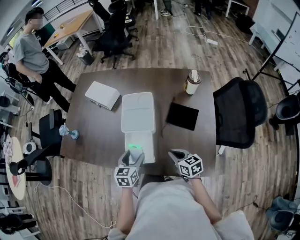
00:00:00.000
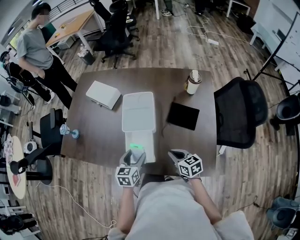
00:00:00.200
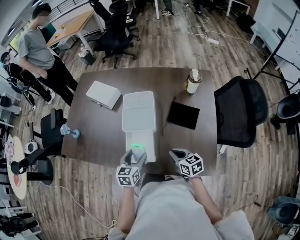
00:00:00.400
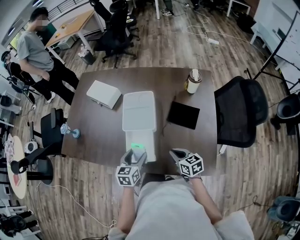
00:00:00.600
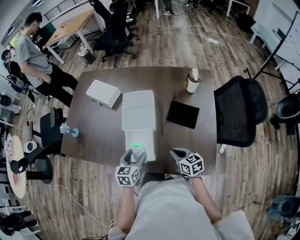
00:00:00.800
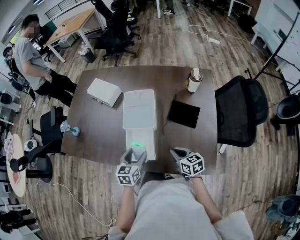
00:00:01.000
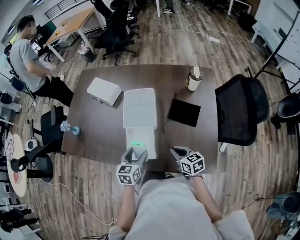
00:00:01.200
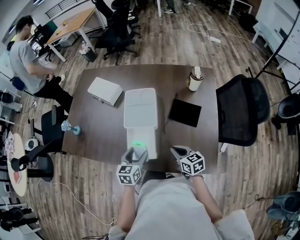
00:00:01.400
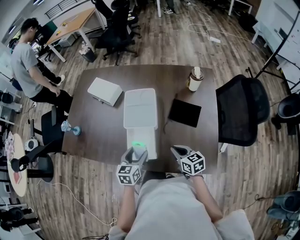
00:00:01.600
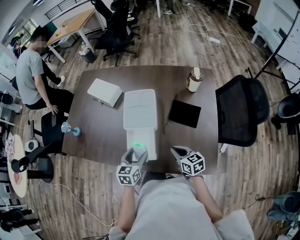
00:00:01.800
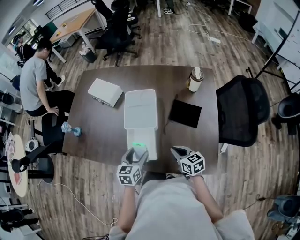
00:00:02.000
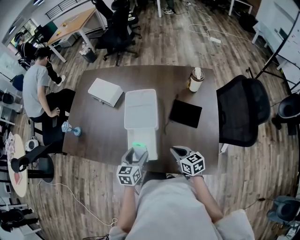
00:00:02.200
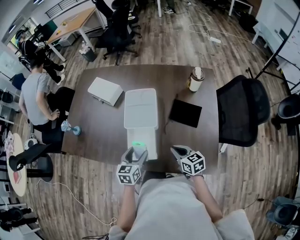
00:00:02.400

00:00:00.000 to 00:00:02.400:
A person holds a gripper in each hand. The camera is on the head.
00:00:00.000 to 00:00:02.400: Both grippers stay put.

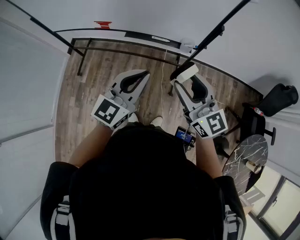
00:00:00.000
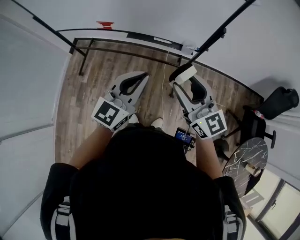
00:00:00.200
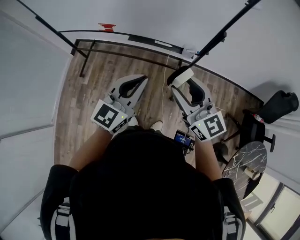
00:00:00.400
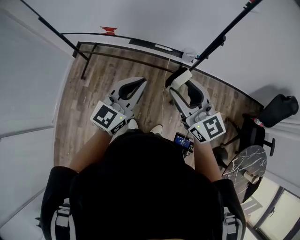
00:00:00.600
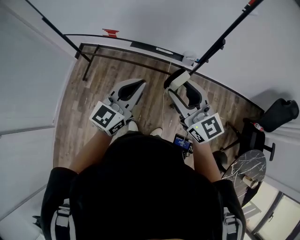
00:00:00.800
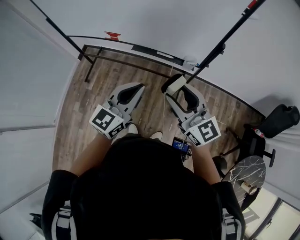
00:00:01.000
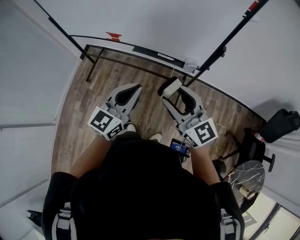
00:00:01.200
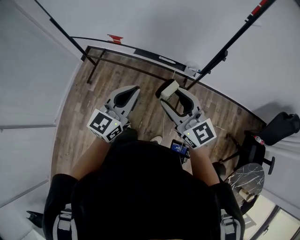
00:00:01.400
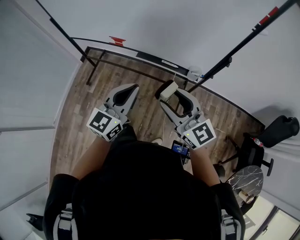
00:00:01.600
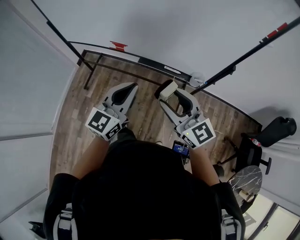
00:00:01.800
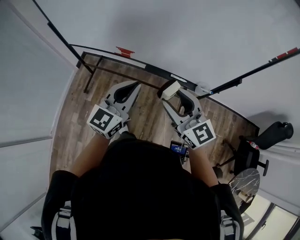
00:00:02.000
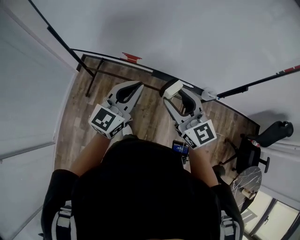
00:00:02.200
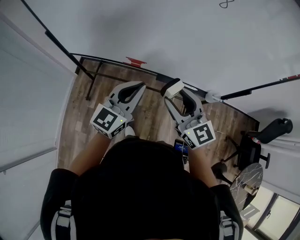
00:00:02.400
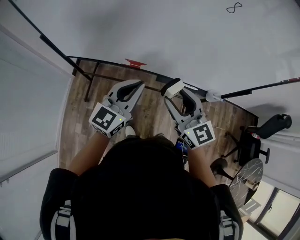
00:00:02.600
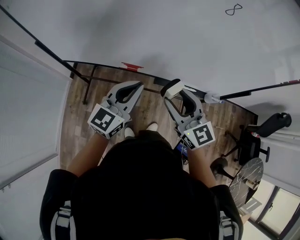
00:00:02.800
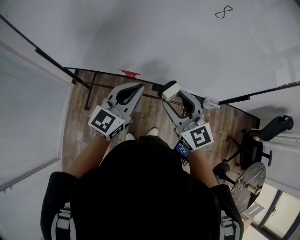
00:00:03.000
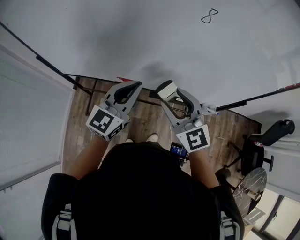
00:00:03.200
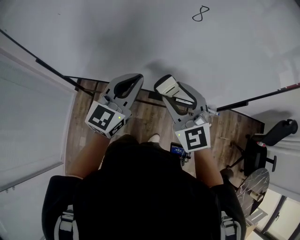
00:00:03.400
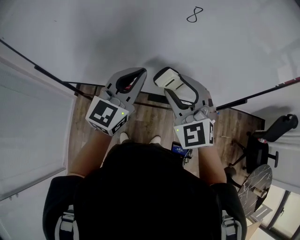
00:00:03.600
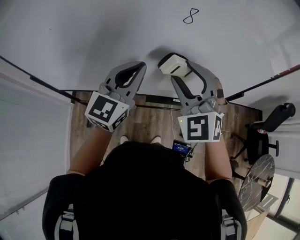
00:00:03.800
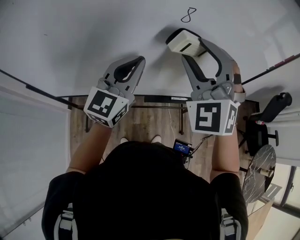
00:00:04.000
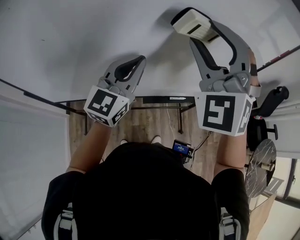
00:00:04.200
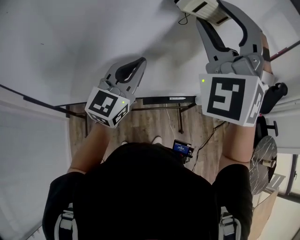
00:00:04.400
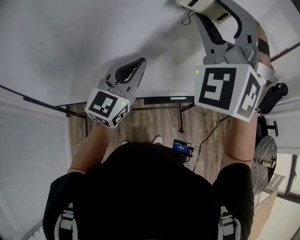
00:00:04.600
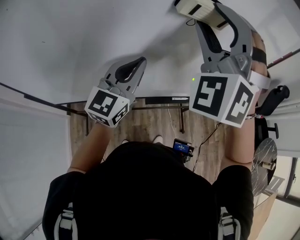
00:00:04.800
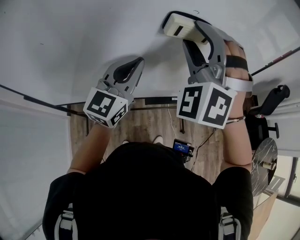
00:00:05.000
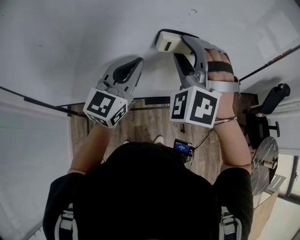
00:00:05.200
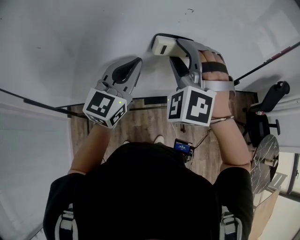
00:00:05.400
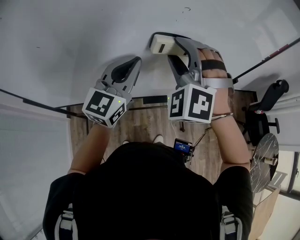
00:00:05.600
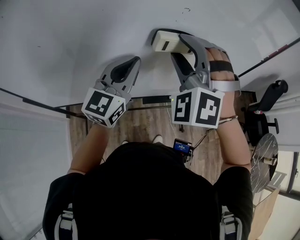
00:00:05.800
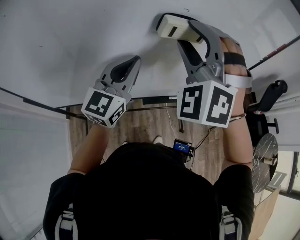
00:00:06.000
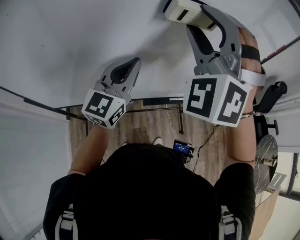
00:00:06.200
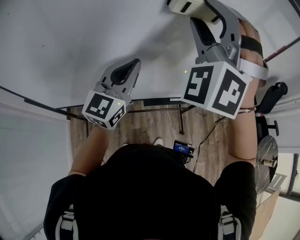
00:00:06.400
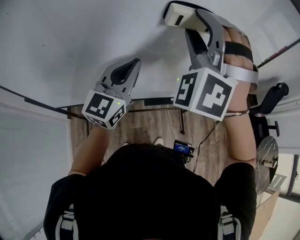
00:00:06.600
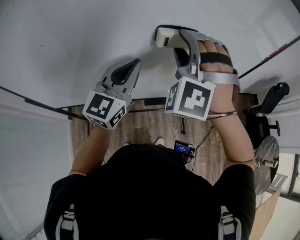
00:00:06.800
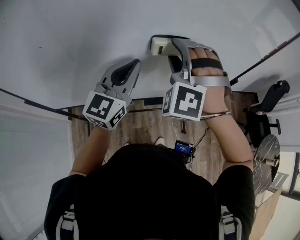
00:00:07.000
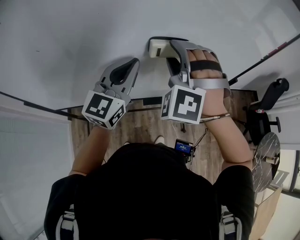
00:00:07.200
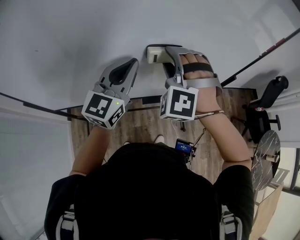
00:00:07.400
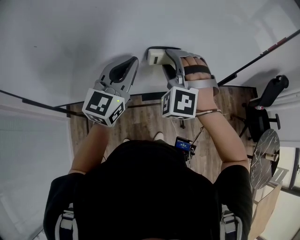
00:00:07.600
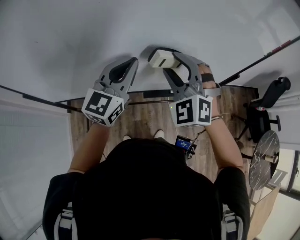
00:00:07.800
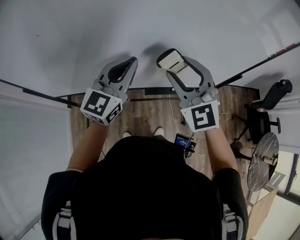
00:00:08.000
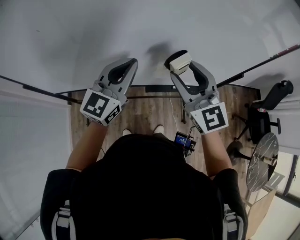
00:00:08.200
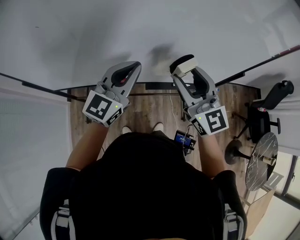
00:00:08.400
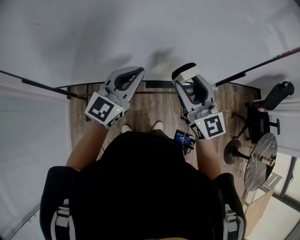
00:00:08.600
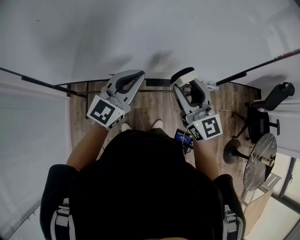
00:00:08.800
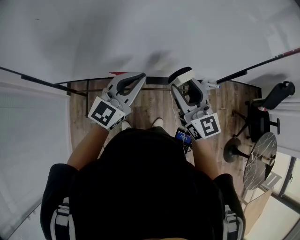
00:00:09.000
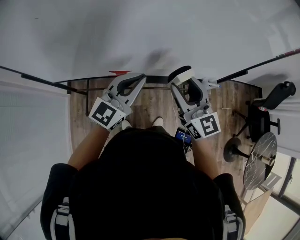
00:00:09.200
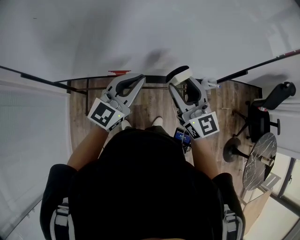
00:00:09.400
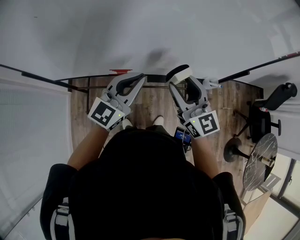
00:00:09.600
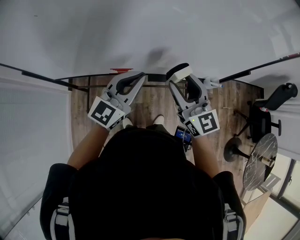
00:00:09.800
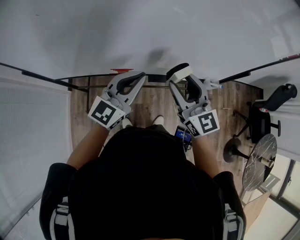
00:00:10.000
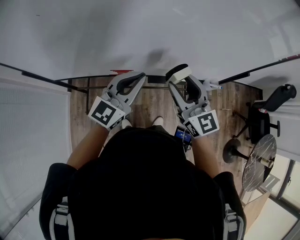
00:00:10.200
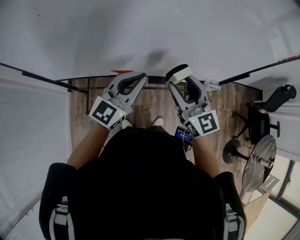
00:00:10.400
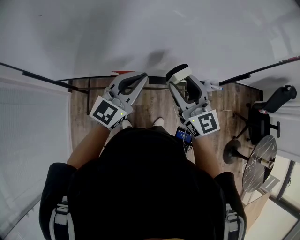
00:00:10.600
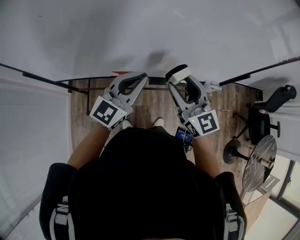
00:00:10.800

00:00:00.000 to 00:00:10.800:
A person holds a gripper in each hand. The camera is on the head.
00:00:00.000 to 00:00:01.600: The right gripper shifts some 5 cm to the left, while the left gripper ends up about 5 cm from where it was.
00:00:01.600 to 00:00:03.000: Both grippers travel together forward and to the left, about 30 cm.
00:00:03.000 to 00:00:04.600: The right gripper heads upward, covering roughly 30 cm, and turns by about 80 degrees. The left gripper shifts by roughly 15 cm.
00:00:04.600 to 00:00:06.200: The right gripper goes downward and returns, some 15 cm each way.
00:00:06.200 to 00:00:07.800: The right gripper moves downward, about 20 cm, and rotates some 30 degrees.
00:00:07.800 to 00:00:09.200: The right gripper shifts about 10 cm backward and downward, and rolls clockwise, seen from behind, by approximately 60 degrees; the left gripper shifts some 10 cm downward and backward.
00:00:09.200 to 00:00:10.800: The grippers move only a little.

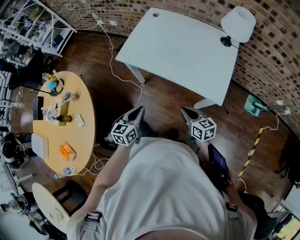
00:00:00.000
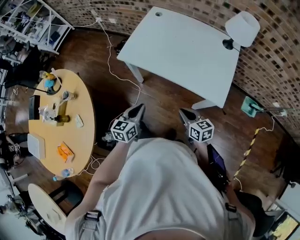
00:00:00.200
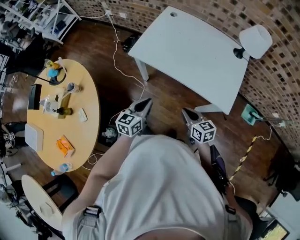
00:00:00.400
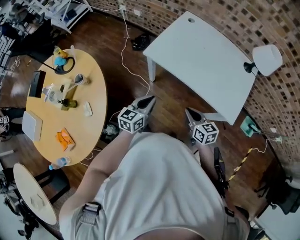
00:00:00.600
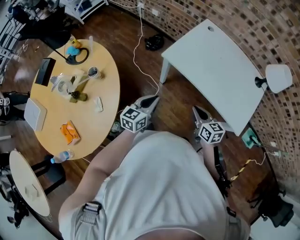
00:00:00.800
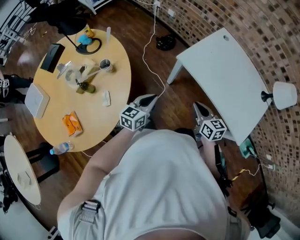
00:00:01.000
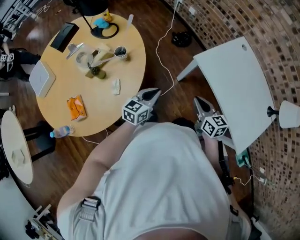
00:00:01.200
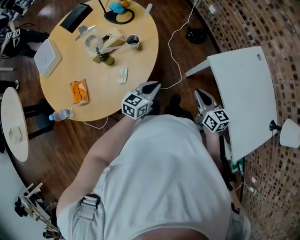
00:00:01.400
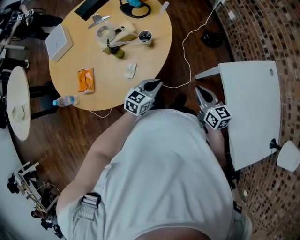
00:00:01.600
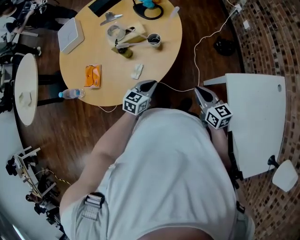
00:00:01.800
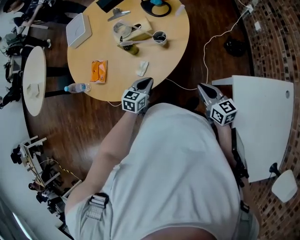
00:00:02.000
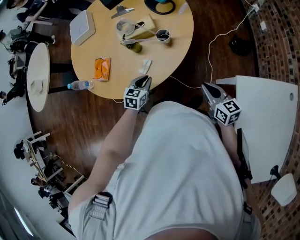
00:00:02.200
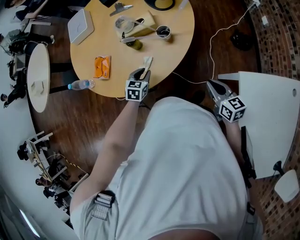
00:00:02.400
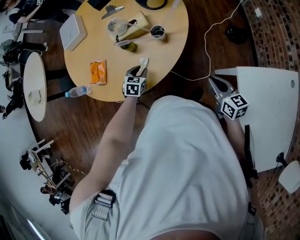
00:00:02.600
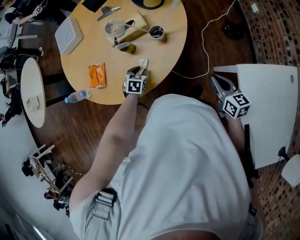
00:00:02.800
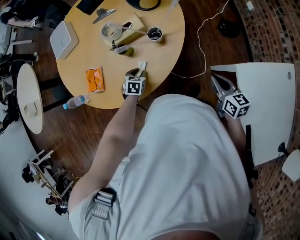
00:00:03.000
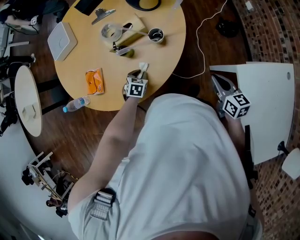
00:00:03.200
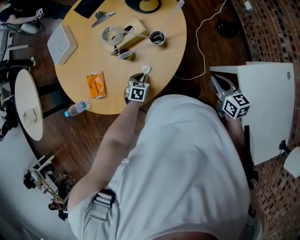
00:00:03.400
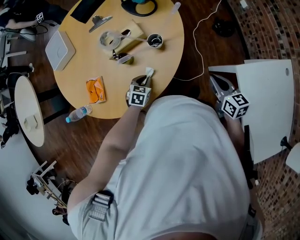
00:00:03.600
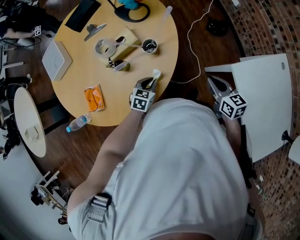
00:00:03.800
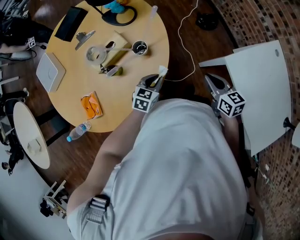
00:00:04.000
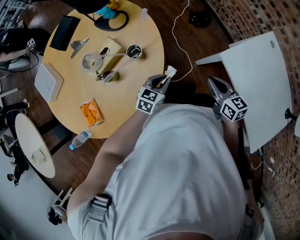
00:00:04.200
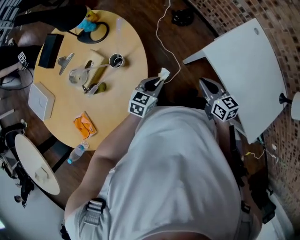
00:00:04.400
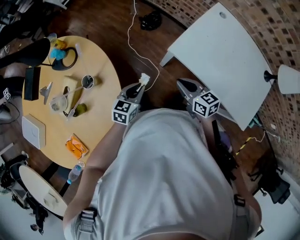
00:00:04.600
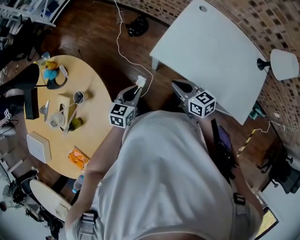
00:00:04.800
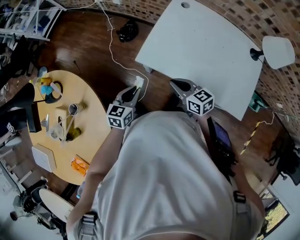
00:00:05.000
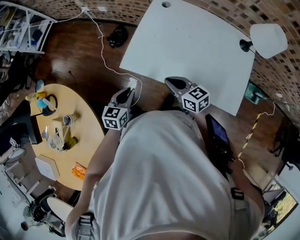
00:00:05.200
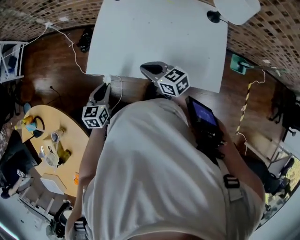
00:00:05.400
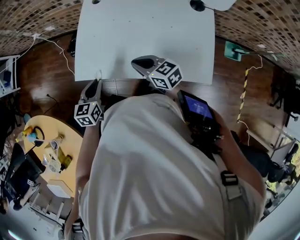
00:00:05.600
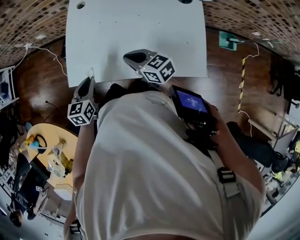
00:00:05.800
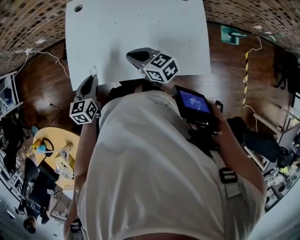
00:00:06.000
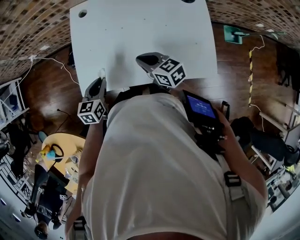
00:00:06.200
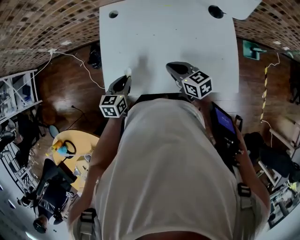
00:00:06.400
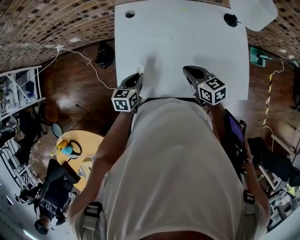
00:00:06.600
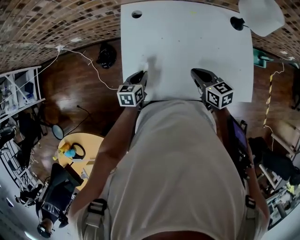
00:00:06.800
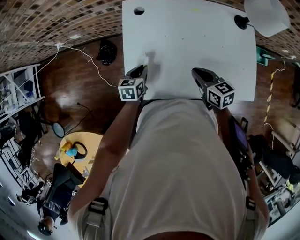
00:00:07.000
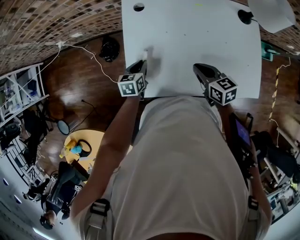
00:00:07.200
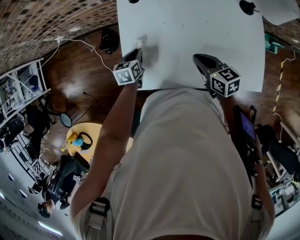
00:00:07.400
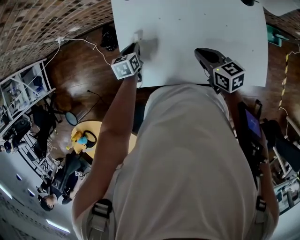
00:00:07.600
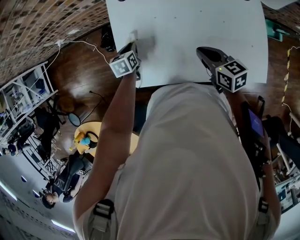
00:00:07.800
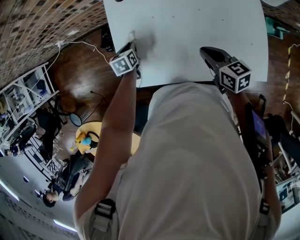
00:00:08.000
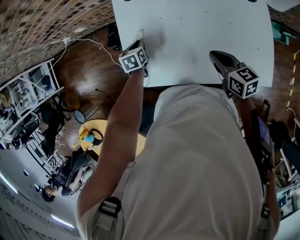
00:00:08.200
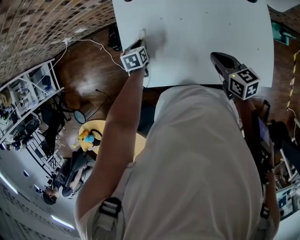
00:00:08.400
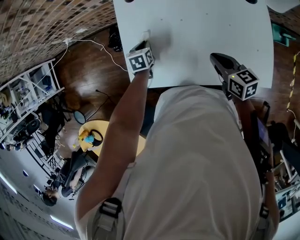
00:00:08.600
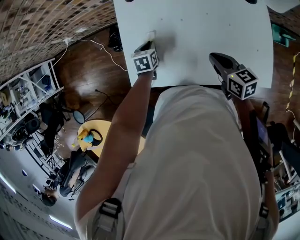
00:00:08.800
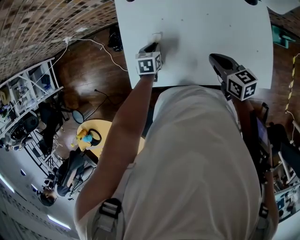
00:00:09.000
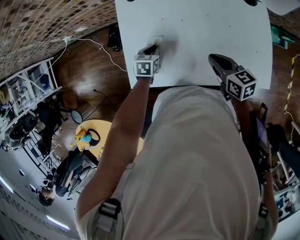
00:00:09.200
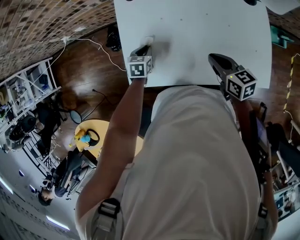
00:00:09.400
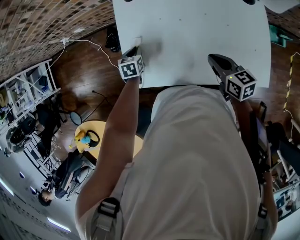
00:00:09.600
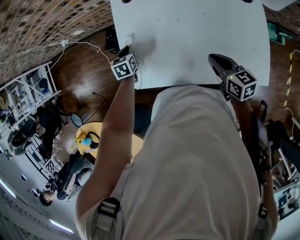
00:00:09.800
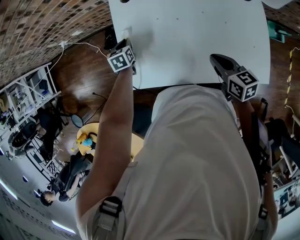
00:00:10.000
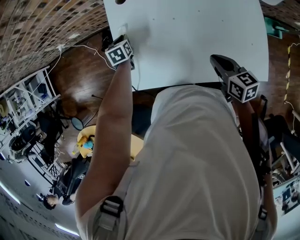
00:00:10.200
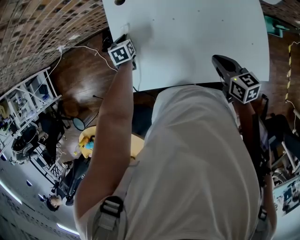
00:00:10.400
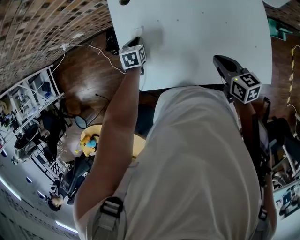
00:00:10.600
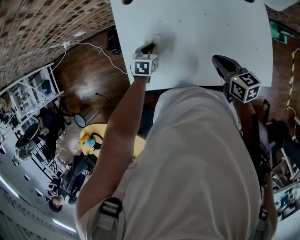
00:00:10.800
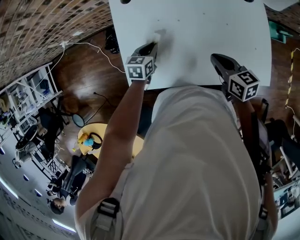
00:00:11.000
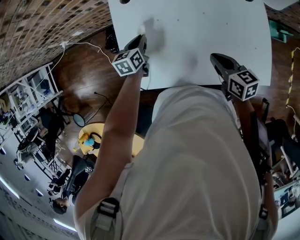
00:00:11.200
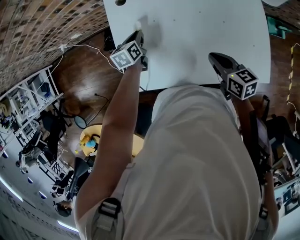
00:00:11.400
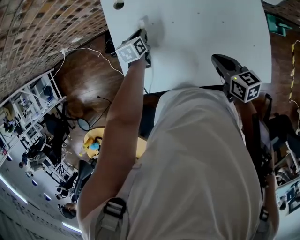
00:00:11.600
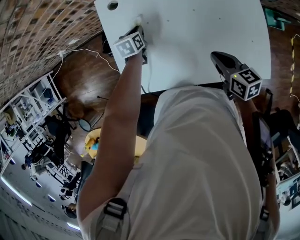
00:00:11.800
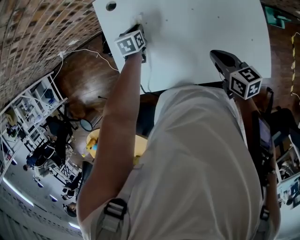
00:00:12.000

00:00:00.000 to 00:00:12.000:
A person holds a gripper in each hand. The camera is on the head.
00:00:00.000 to 00:00:01.600: The right gripper ends up roughly 50 cm from where it was, and changes its angle by approximately 40 degrees. The left gripper moves some 35 cm, and rotates about 30 degrees.
00:00:01.600 to 00:00:03.000: The right gripper moves roughly 10 cm, while the left gripper ends up approximately 25 cm from where it was, points its fingers roughly 40 degrees further downward, and opens.
00:00:03.000 to 00:00:04.400: The right gripper shifts by approximately 5 cm, and rotates roughly 30 degrees, while the left gripper changes place by about 25 cm, and rotates some 50 degrees.
00:00:04.400 to 00:00:06.000: The two grippers travel together, roughly 40 cm. The left gripper turns by some 30 degrees; the right gripper rotates some 30 degrees.
00:00:06.000 to 00:00:07.600: The right gripper travels forward by some 5 cm, while the left gripper travels forward and downward by some 25 cm.
00:00:07.600 to 00:00:09.000: The right gripper shifts by about 5 cm. The left gripper travels to the right by some 10 cm.
00:00:09.000 to 00:00:10.400: The left gripper heads forward and to the left, covering approximately 15 cm.
00:00:10.400 to 00:00:12.000: The left gripper travels to the right by some 10 cm, and goes backward and returns, about 10 cm each way.
